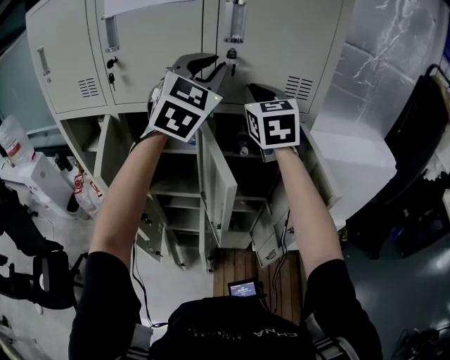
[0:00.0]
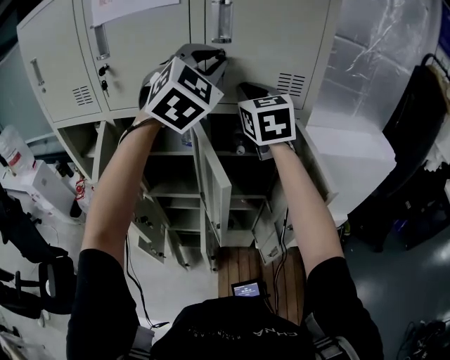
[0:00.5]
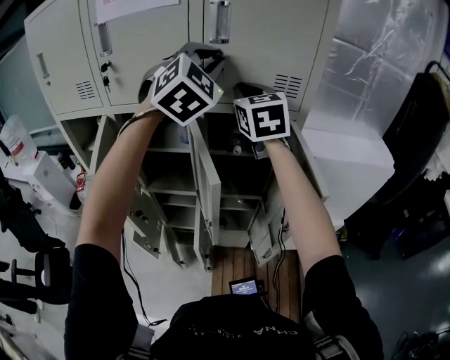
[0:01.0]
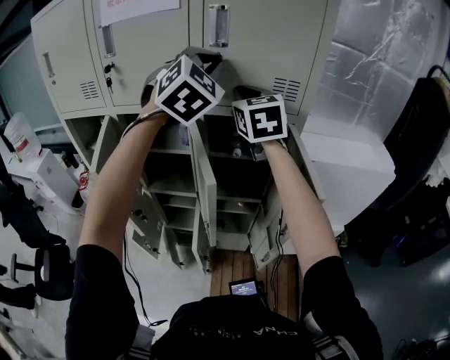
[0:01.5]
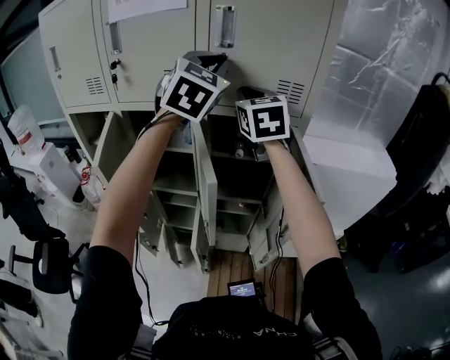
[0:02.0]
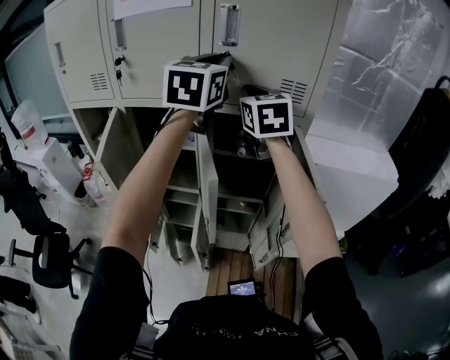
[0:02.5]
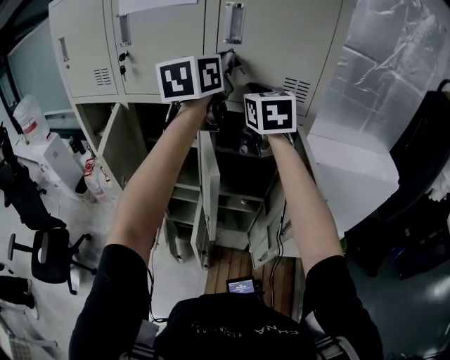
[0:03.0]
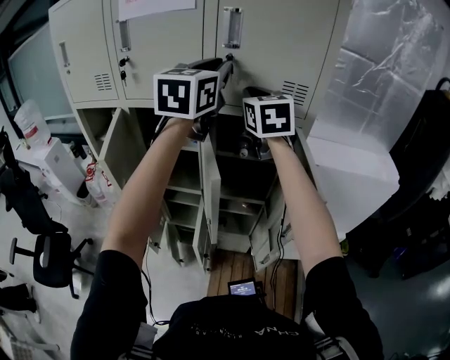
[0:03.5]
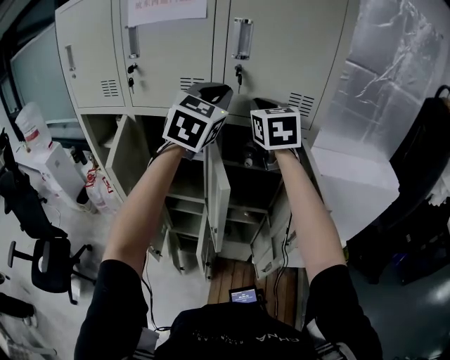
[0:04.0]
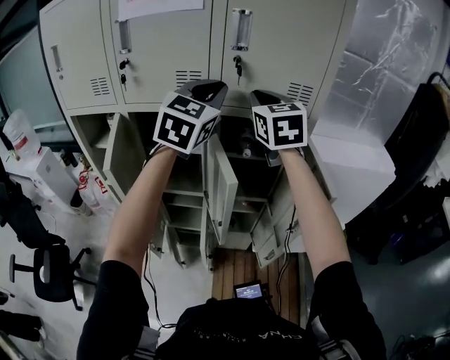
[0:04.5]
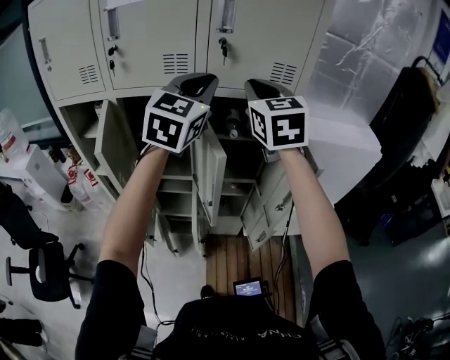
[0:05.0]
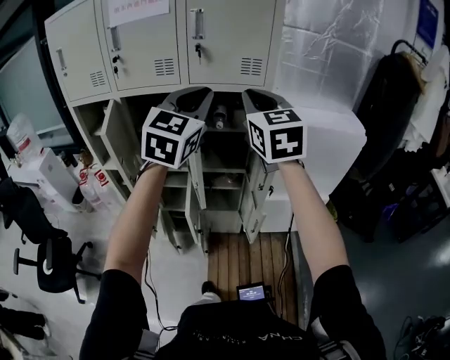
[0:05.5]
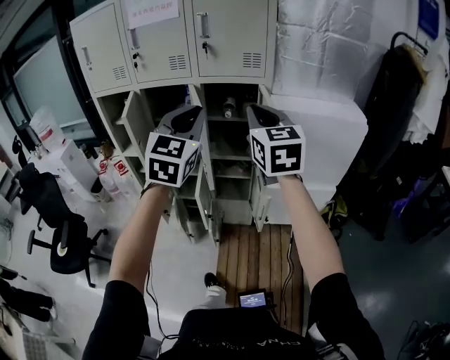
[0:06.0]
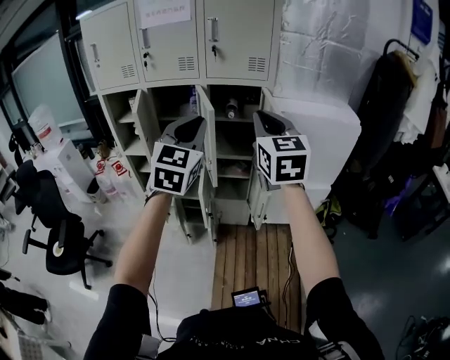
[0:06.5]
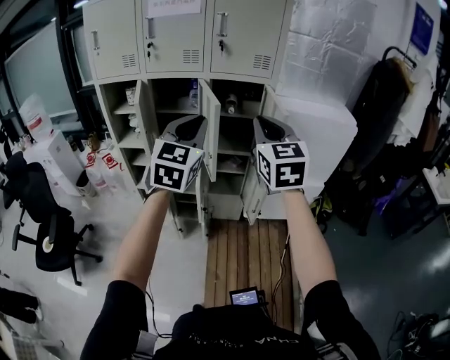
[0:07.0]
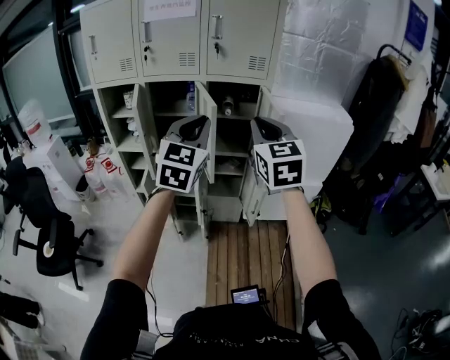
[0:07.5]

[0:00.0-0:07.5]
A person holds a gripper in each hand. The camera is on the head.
0:02.0 to 0:04.0: The left gripper moves approximately 5 cm.
0:04.0 to 0:05.5: The grippers both shift backward and to the right by approximately 25 cm.
0:05.5 to 0:07.5: The grippers both shift backward by approximately 20 cm.

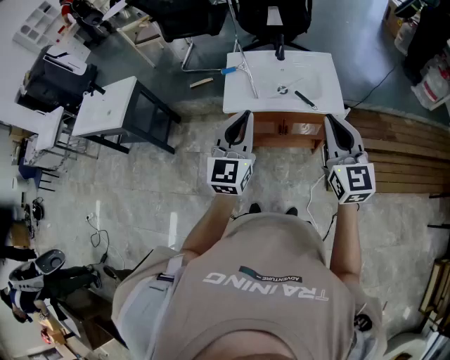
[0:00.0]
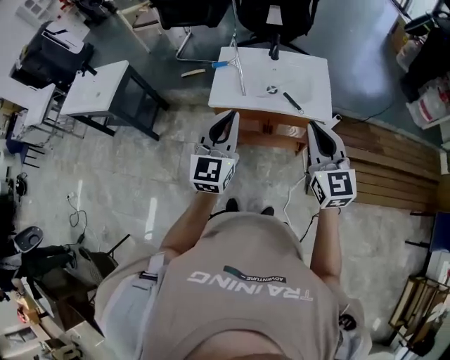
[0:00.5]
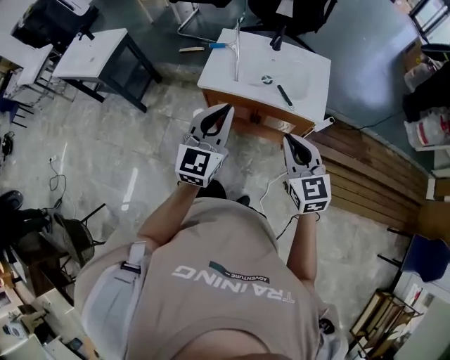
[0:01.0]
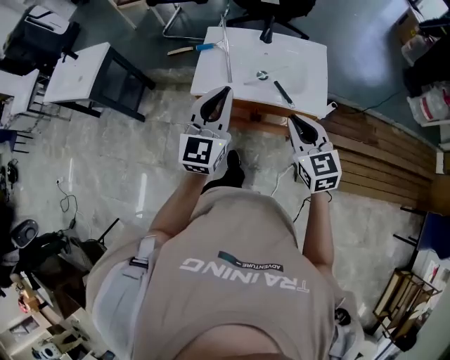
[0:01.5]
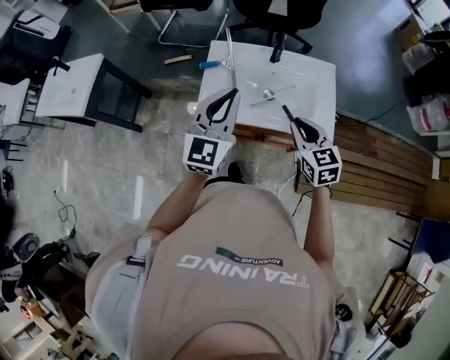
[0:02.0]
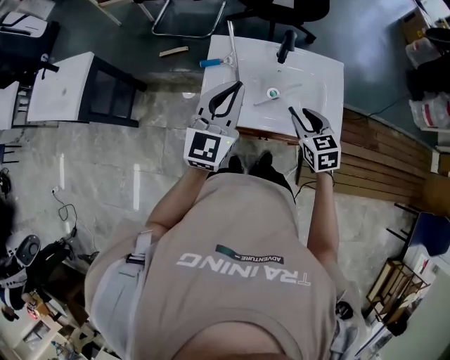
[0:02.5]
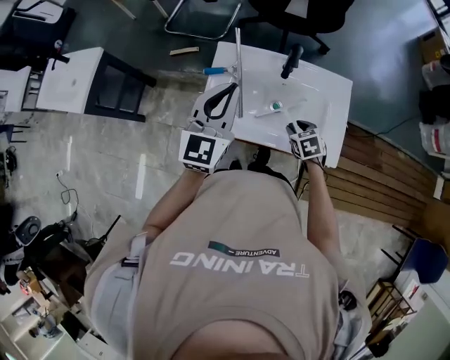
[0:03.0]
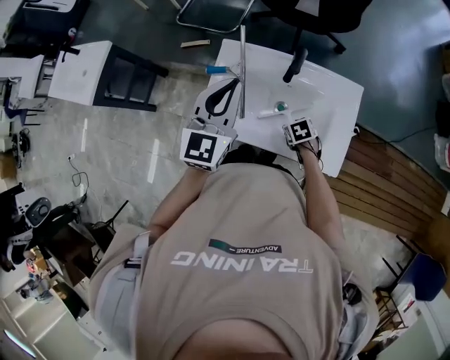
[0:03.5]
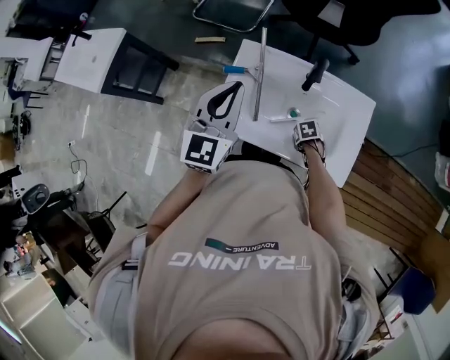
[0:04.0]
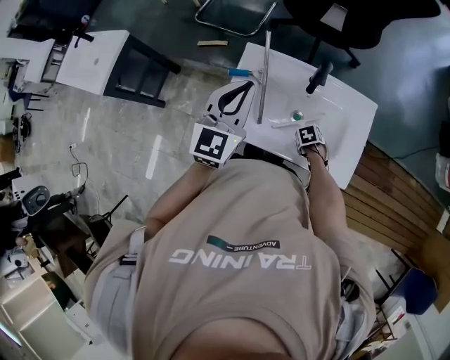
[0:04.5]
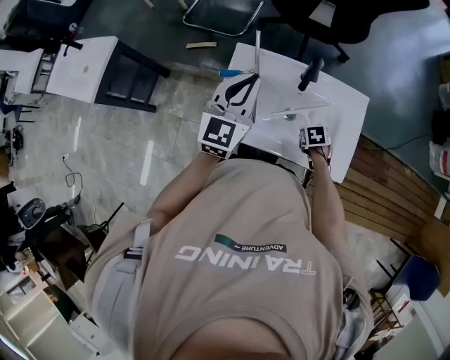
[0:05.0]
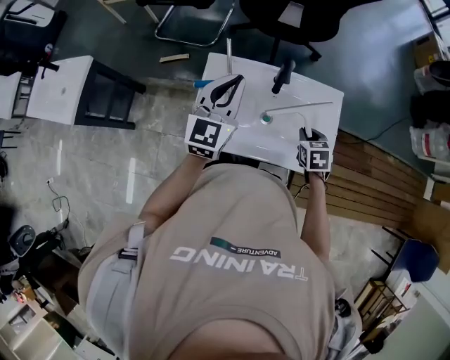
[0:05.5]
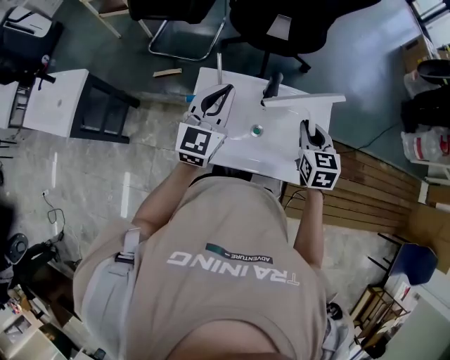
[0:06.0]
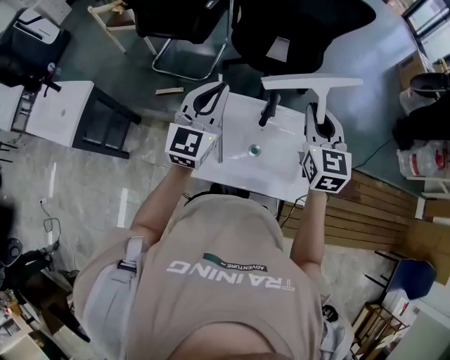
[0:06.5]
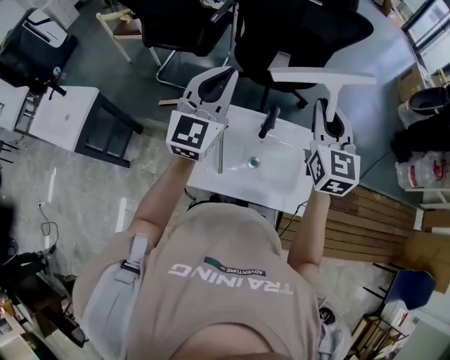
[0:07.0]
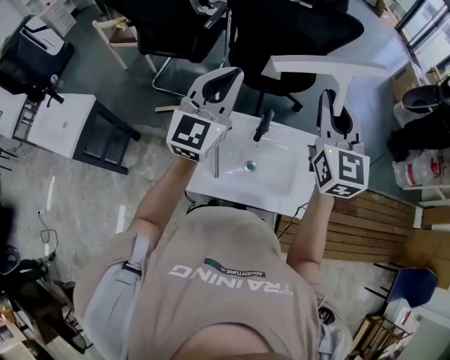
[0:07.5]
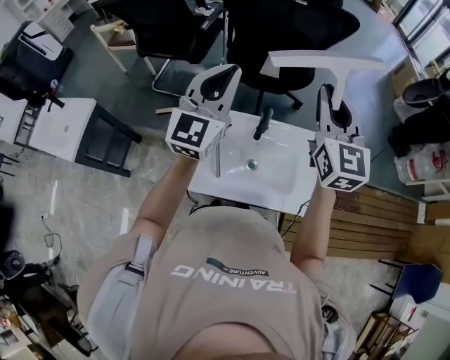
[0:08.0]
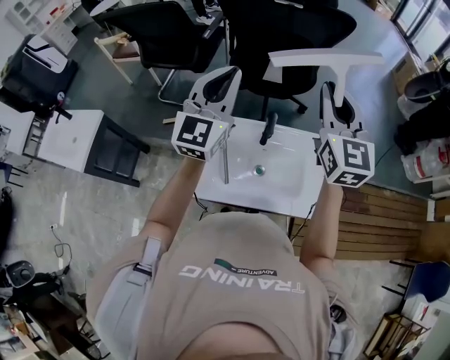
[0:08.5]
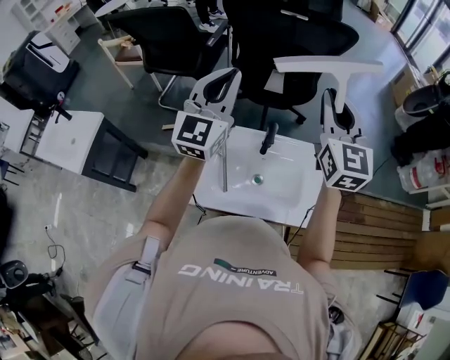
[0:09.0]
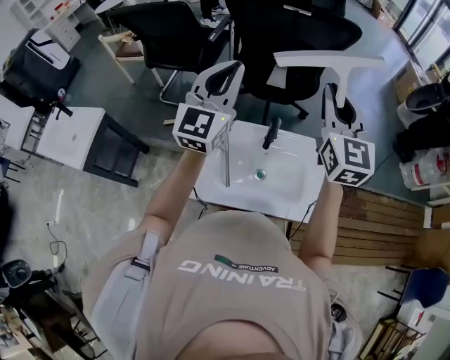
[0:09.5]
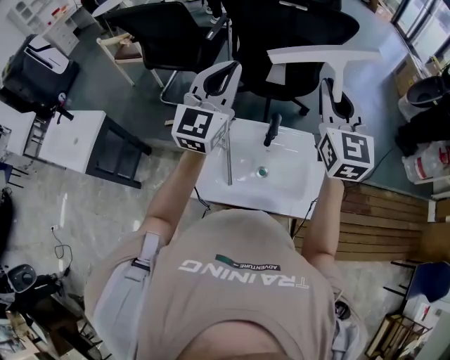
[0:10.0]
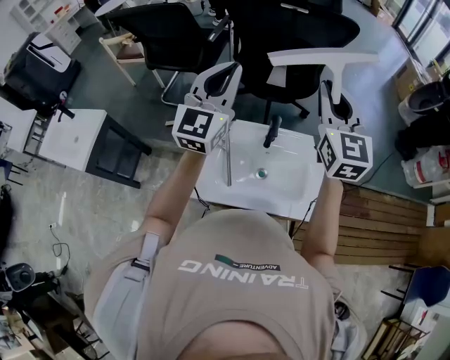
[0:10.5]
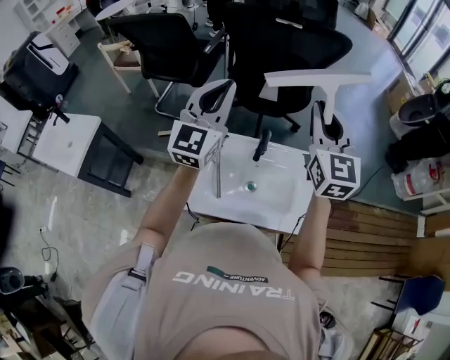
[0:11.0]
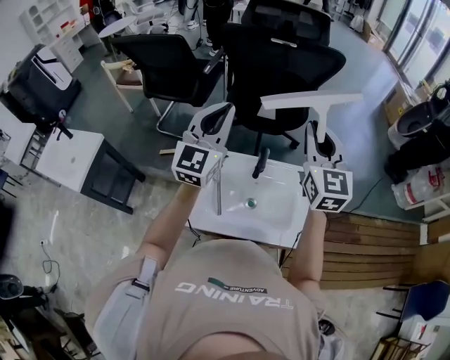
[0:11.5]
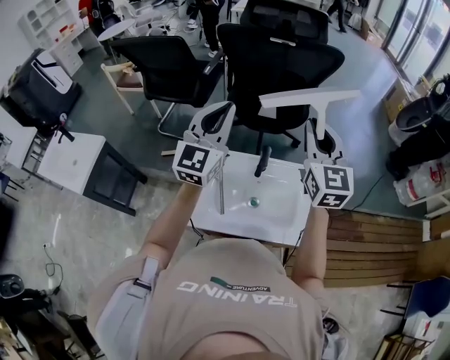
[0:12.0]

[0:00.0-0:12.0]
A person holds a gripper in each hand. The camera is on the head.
0:00.0 to 0:02.0: The right gripper shifts approximately 25 cm forward and downward, and swivels some 30 degrees. The left gripper goes some 20 cm forward.
0:02.0 to 0:04.0: The right gripper is displaced downward by approximately 35 cm, points its fingers some 50 degrees further downward, and opens its fingers; the left gripper ends up roughly 15 cm from where it was.
0:04.0 to 0:06.0: The right gripper shifts about 35 cm upward, tips its fingers upward by about 50 degrees, and closes its fingers, while the left gripper changes place by about 10 cm.
0:06.0 to 0:08.0: The left gripper goes some 15 cm upward. Meanwhile the right gripper shifts some 25 cm upward, and angles its fingers upward, by about 30 degrees.
0:08.0 to 0:12.0: The grippers make only small movements.

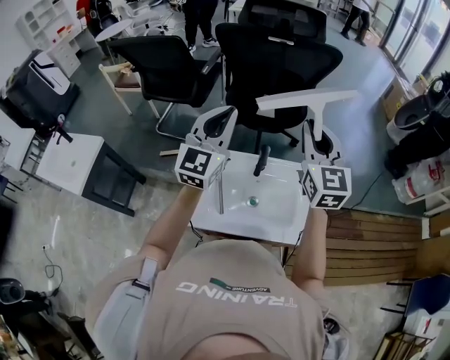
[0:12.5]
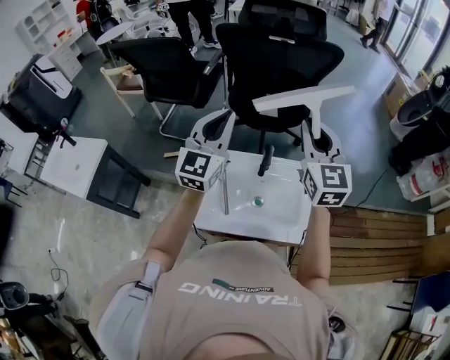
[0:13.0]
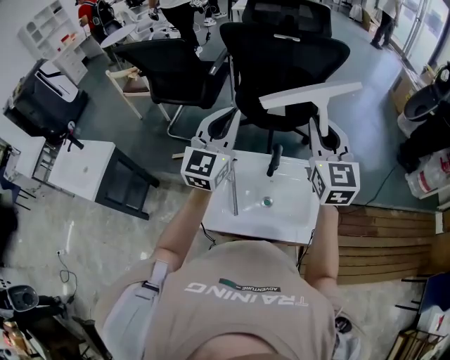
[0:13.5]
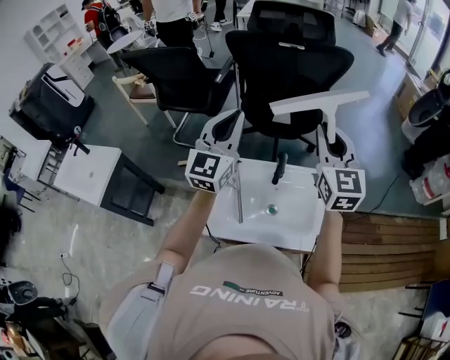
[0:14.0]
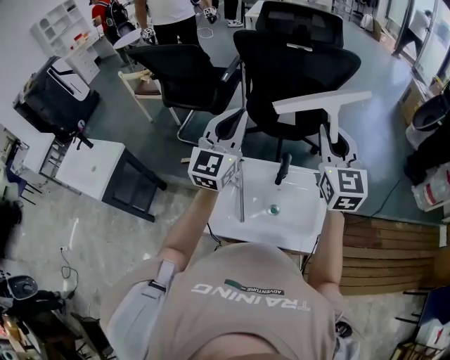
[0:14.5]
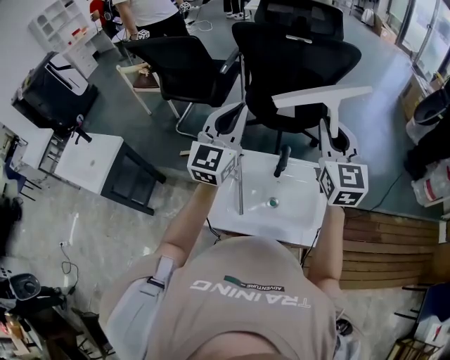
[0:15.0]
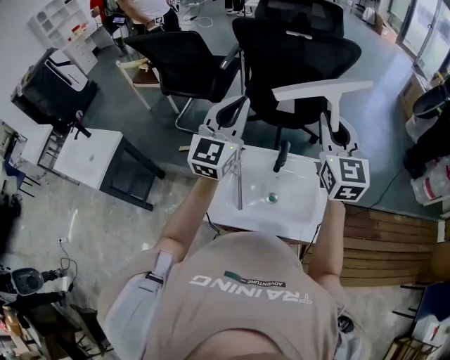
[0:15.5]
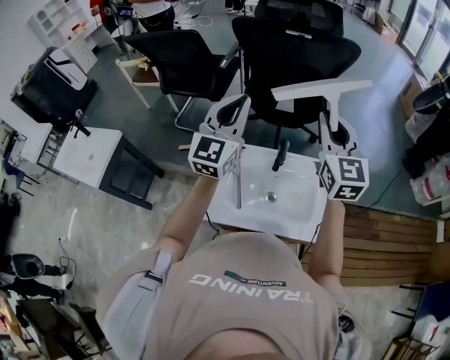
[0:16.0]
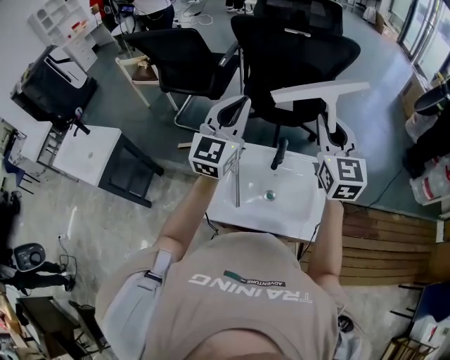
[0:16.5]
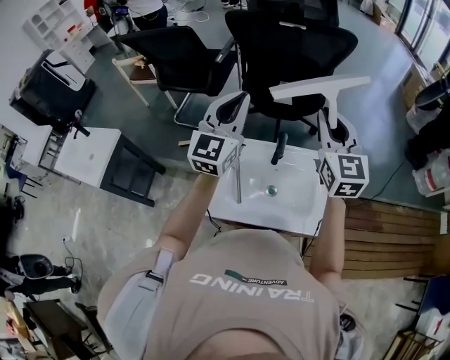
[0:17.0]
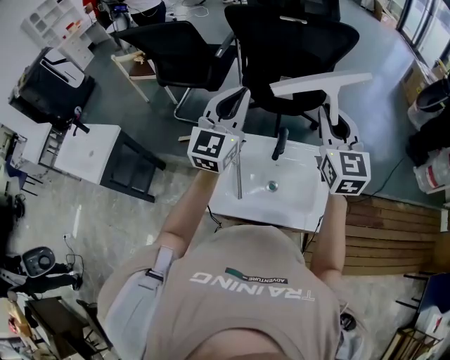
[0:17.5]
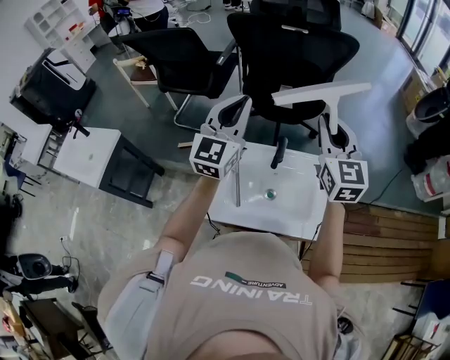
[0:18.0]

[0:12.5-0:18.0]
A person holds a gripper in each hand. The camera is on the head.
0:12.5 to 0:18.0: The grippers make only small movements.

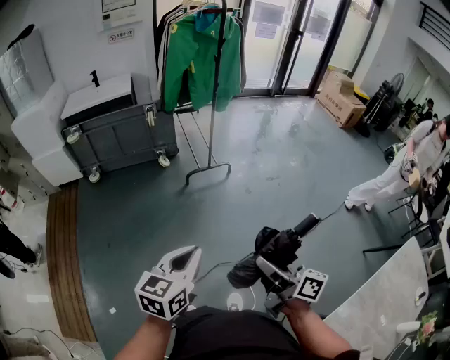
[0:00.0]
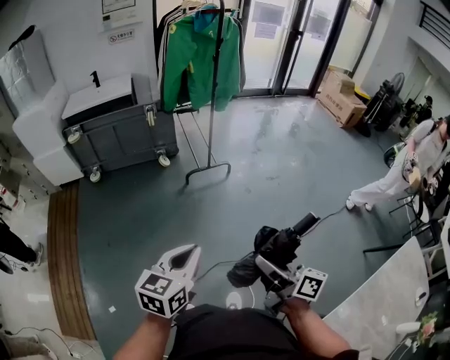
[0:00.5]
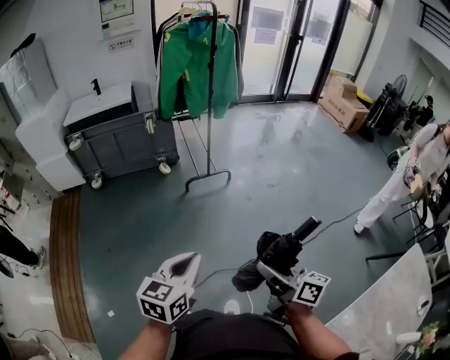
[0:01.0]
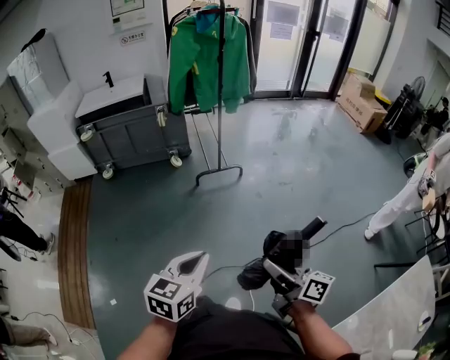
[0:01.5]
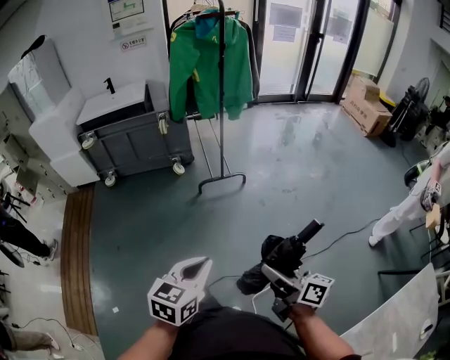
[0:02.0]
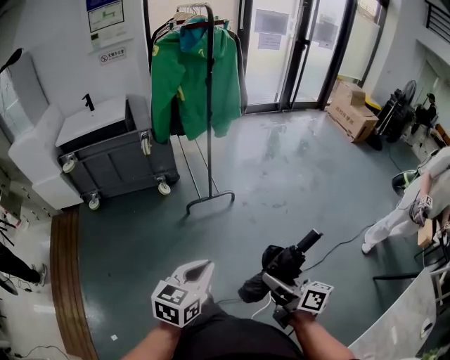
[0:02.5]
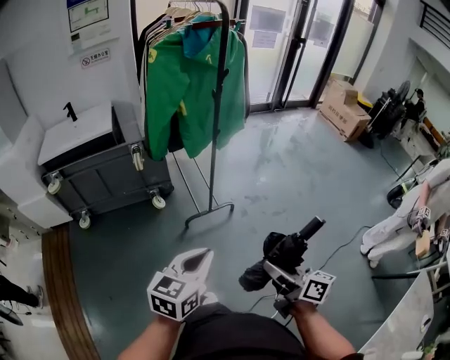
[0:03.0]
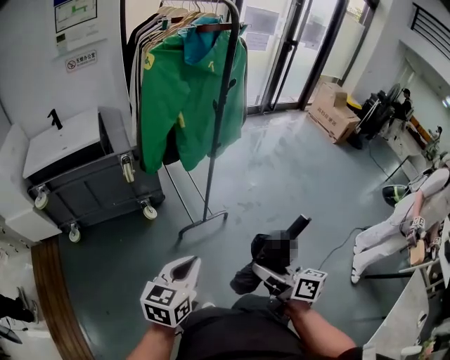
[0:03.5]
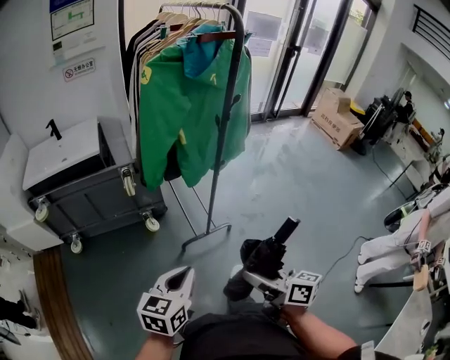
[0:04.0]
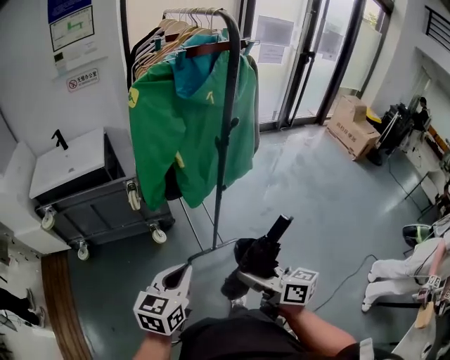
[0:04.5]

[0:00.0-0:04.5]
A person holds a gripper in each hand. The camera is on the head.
0:00.0 to 0:02.0: Both grippers travel together to the right and forward, approximately 15 cm.
0:02.0 to 0:04.5: Both grippers are carried forward, some 60 cm.
